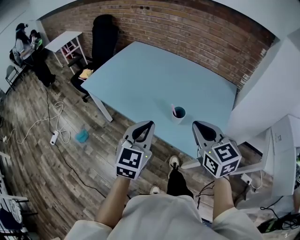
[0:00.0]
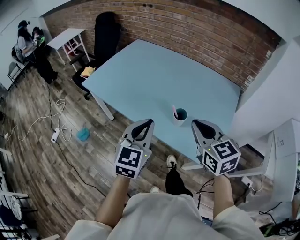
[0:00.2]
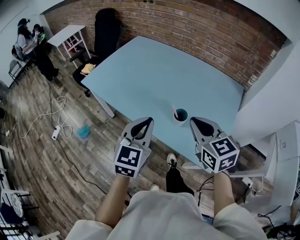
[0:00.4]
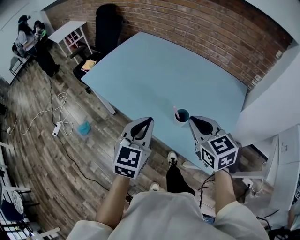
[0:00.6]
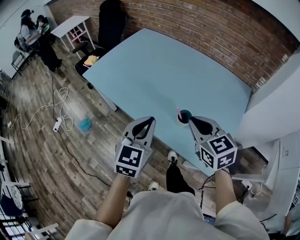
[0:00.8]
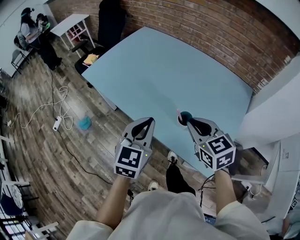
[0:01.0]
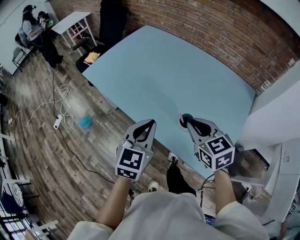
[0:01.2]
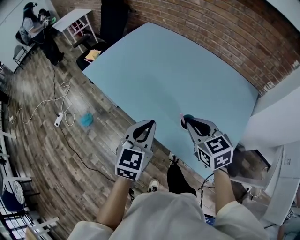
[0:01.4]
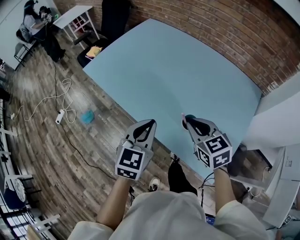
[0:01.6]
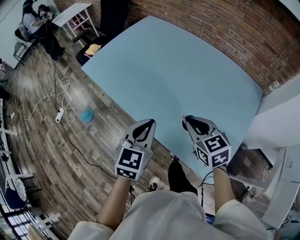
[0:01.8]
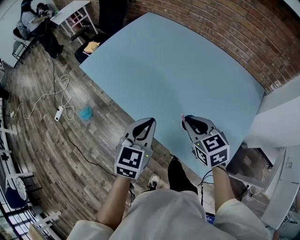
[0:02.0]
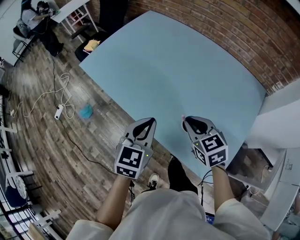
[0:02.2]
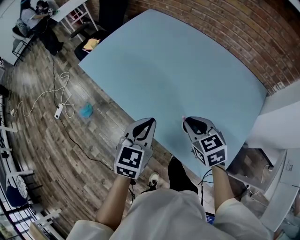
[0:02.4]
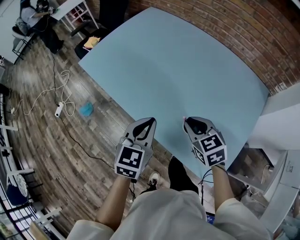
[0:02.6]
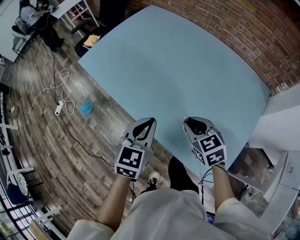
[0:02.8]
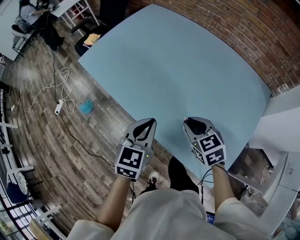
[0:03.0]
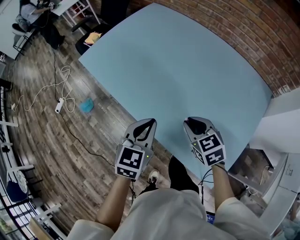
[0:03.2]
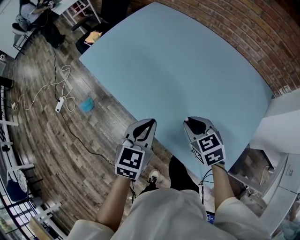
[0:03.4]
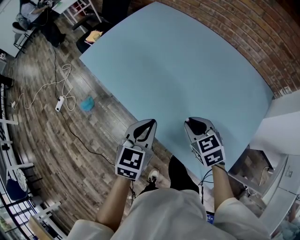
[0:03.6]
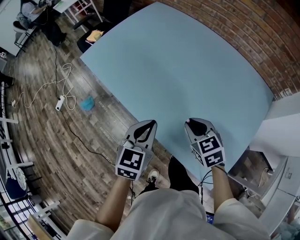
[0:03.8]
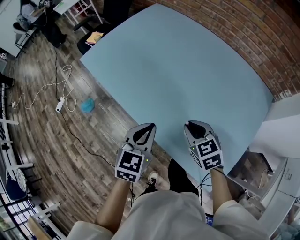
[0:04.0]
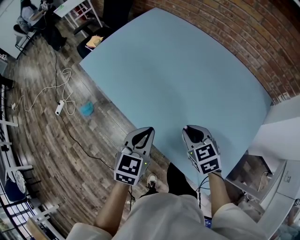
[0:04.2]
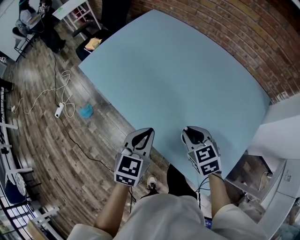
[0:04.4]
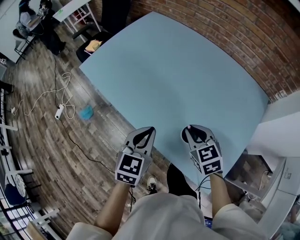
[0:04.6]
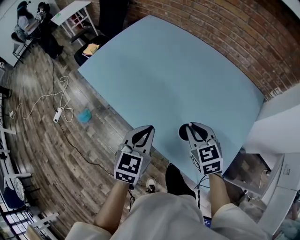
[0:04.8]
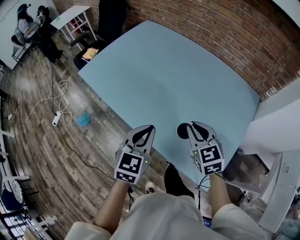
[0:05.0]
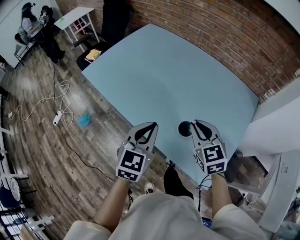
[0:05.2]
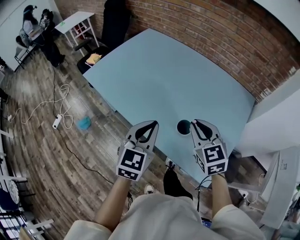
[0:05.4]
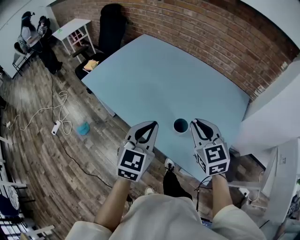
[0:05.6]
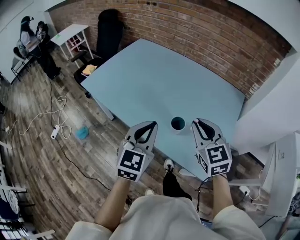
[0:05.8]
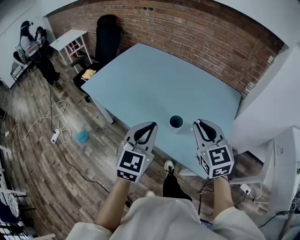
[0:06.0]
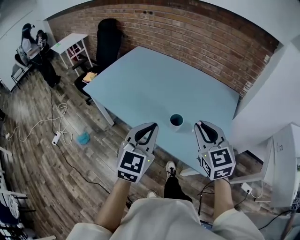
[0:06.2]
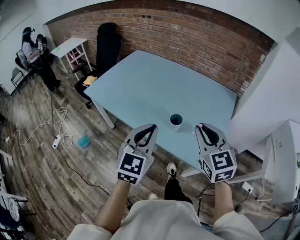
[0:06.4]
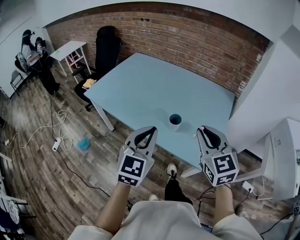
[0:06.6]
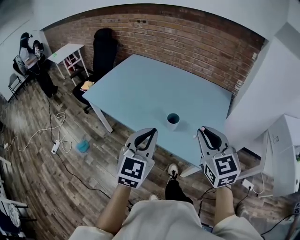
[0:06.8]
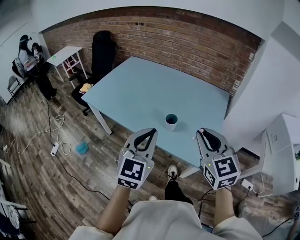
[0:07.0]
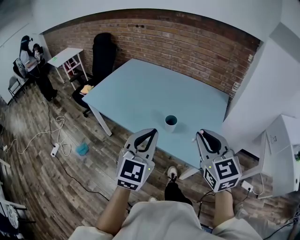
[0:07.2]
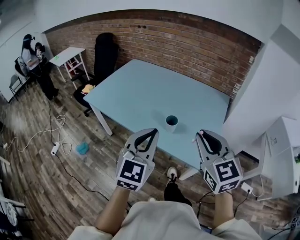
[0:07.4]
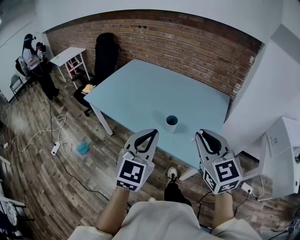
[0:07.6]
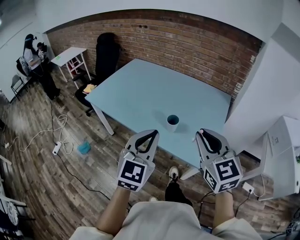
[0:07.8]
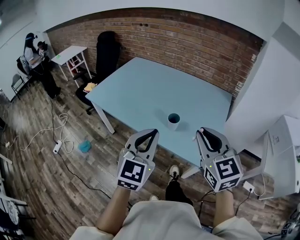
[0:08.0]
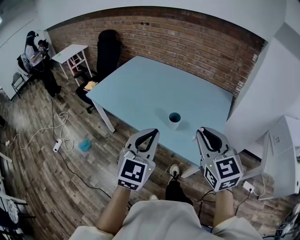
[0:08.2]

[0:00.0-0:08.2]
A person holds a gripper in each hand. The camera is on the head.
0:00.0 to 0:01.6: Both grippers move forward and downward, about 15 cm. The right gripper turns by roughly 20 degrees.
0:01.6 to 0:03.2: The grippers both shift downward by roughly 5 cm.
0:03.2 to 0:05.0: The right gripper heads upward, covering approximately 5 cm. Meanwhile the left gripper shifts by some 5 cm.
0:05.0 to 0:06.6: Both grippers move backward and upward, roughly 25 cm. The right gripper turns by about 20 degrees.
0:06.6 to 0:08.2: The left gripper ends up about 5 cm from where it was. Meanwhile the right gripper moves backward, some 5 cm.

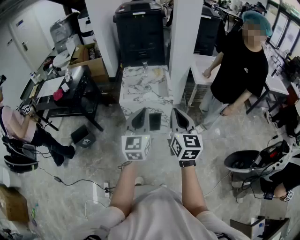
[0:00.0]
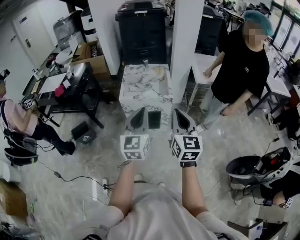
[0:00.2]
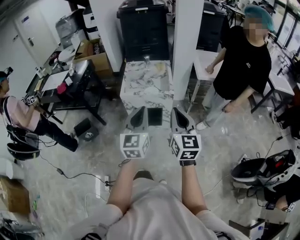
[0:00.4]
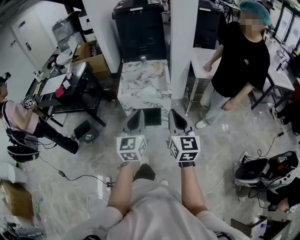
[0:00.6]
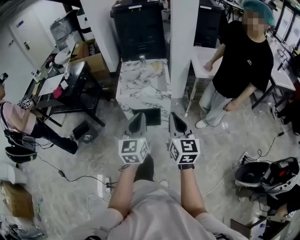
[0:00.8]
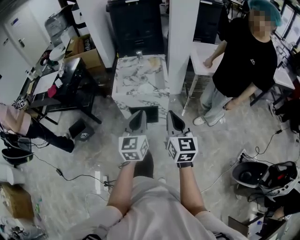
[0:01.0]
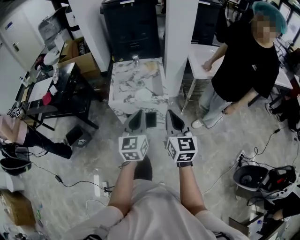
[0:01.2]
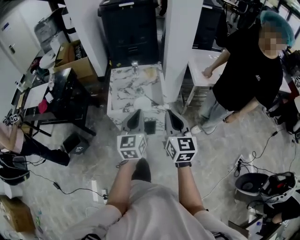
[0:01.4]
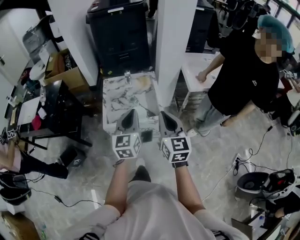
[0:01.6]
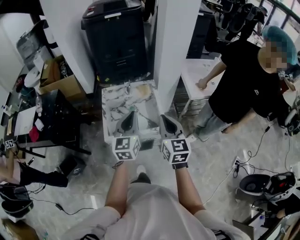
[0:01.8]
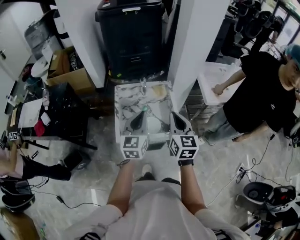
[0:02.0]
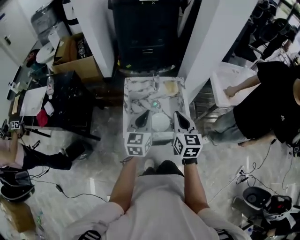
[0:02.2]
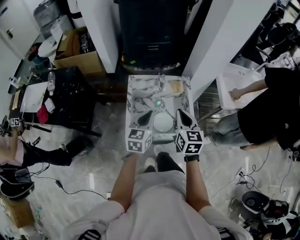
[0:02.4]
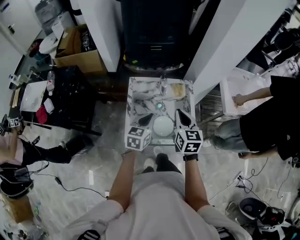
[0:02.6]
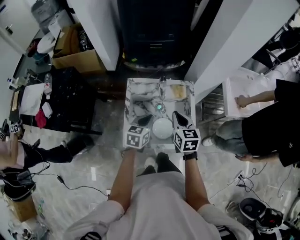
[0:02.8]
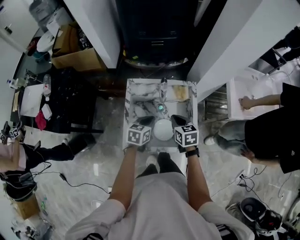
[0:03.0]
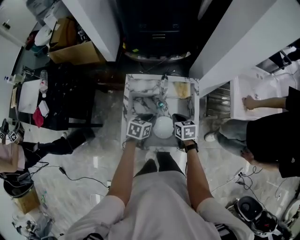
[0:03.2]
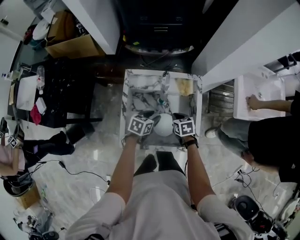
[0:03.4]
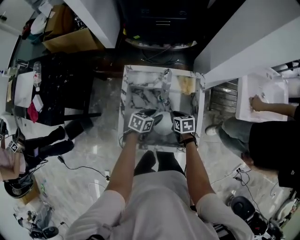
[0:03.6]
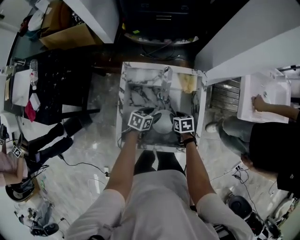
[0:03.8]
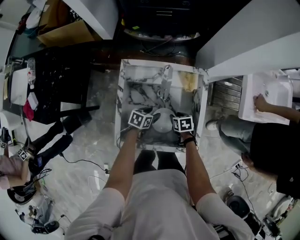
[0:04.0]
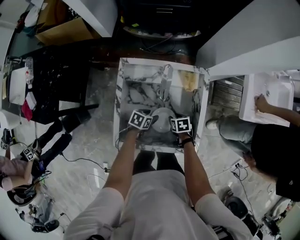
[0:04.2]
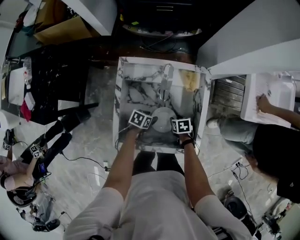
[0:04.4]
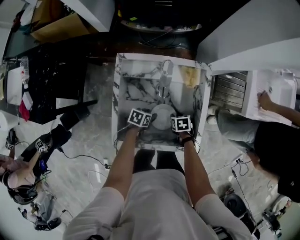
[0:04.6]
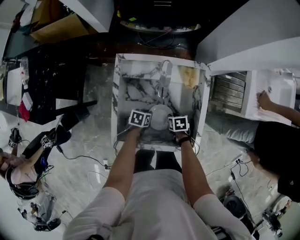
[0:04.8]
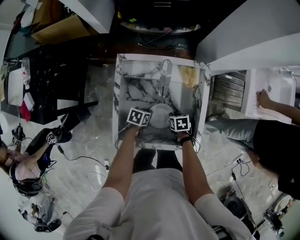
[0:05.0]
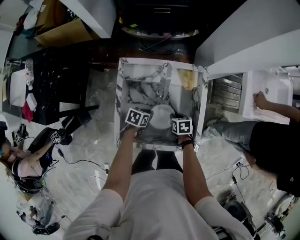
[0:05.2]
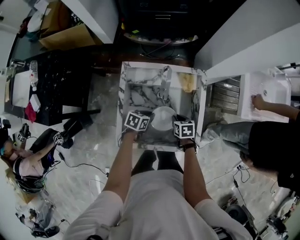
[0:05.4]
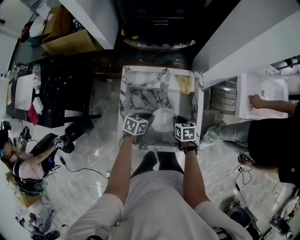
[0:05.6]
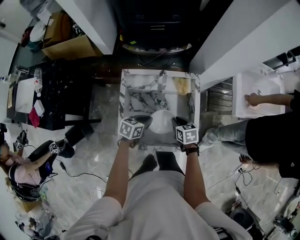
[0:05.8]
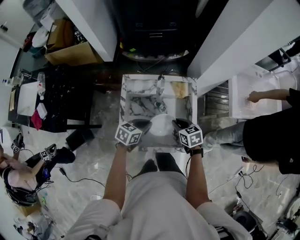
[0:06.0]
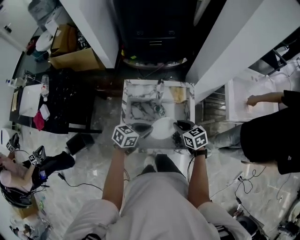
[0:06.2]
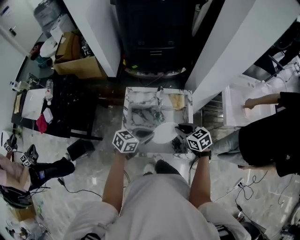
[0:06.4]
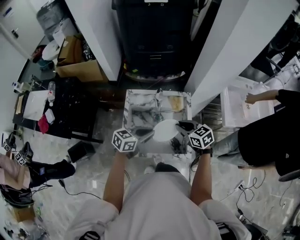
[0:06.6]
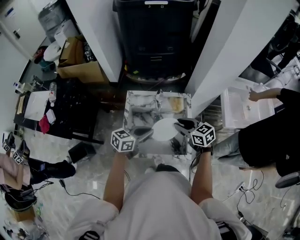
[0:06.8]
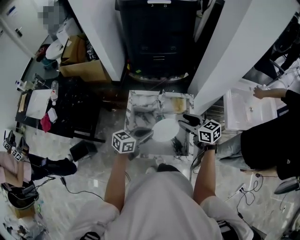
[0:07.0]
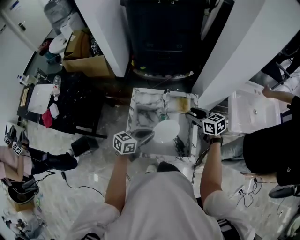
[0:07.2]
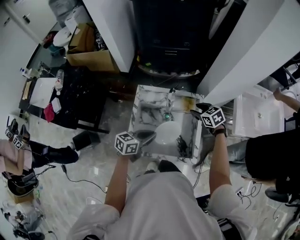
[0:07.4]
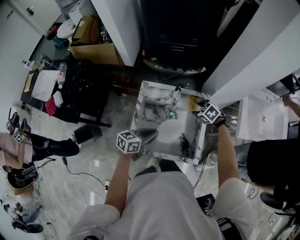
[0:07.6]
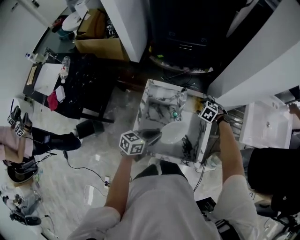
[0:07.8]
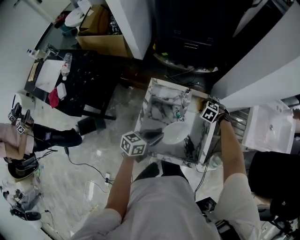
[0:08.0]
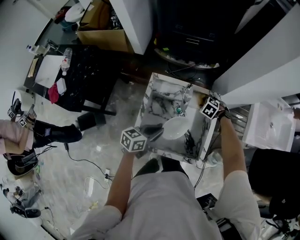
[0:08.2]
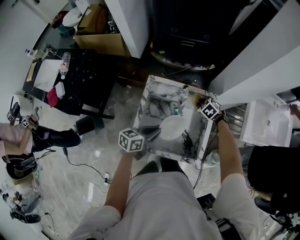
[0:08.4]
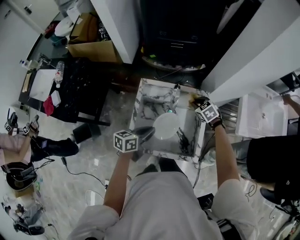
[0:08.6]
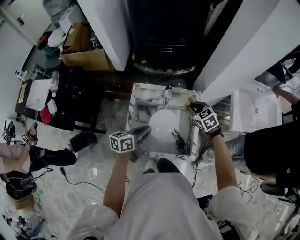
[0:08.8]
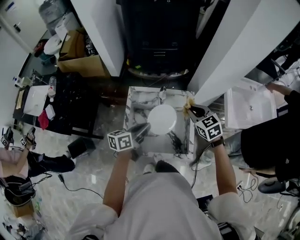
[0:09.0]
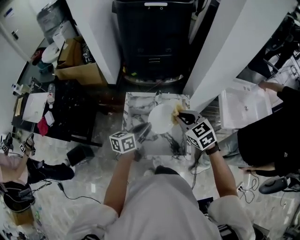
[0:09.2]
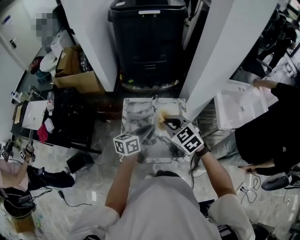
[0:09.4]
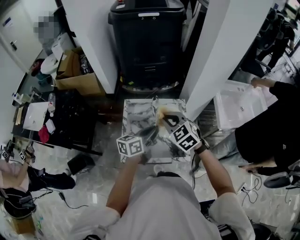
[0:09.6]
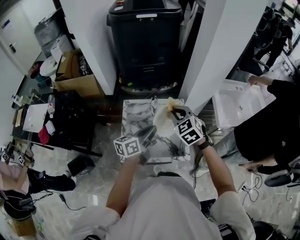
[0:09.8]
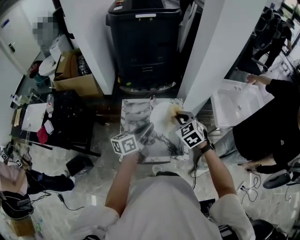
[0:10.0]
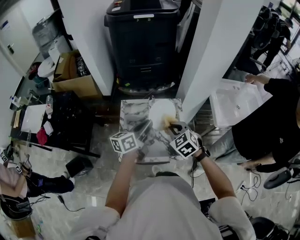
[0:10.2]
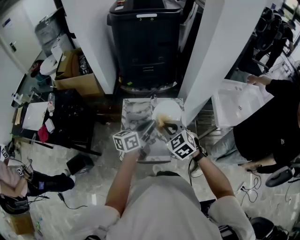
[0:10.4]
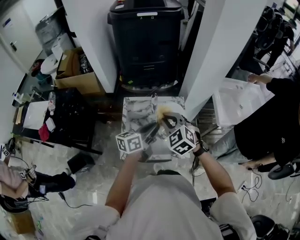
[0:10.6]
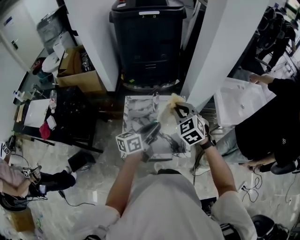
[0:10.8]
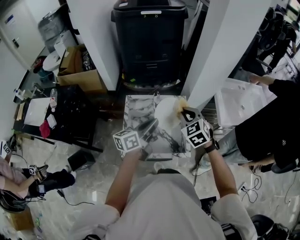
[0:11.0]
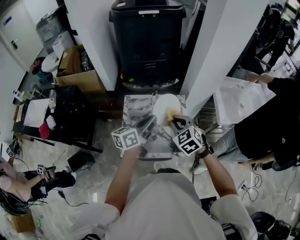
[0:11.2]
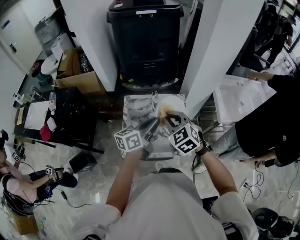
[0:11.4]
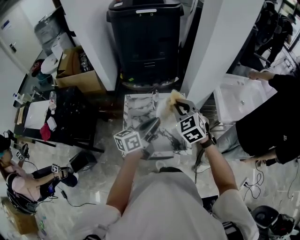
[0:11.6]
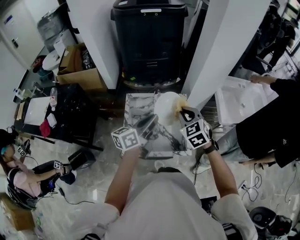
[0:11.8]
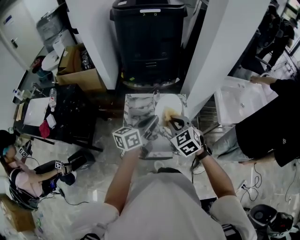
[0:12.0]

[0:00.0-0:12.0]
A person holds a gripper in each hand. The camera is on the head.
0:00.0 to 0:01.6: Both grippers move forward, some 25 cm.
0:01.6 to 0:03.0: The left gripper is displaced downward and forward by about 35 cm, and points its fingers approximately 30 degrees further downward; the right gripper shifts some 40 cm forward and downward, and angles its fingers downward, by approximately 30 degrees.
0:03.0 to 0:04.4: Both grippers move downward, approximately 25 cm. The right gripper tips its fingers downward by approximately 30 degrees, and opens up; the left gripper changes its angle by roughly 30 degrees, and opens.
0:04.4 to 0:06.0: Both grippers travel together upward, some 20 cm. The right gripper turns by about 30 degrees, and closes up; the left gripper changes its angle by some 30 degrees, and closes.
0:06.0 to 0:07.6: The right gripper goes about 15 cm forward, moves some 15 cm upward and comes back, turns by about 50 degrees, and opens, while the left gripper moves upward, some 5 cm.
0:07.6 to 0:09.0: The left gripper shifts approximately 5 cm upward, while the right gripper goes some 15 cm upward, swivels approximately 40 degrees, and closes.
0:09.0 to 0:10.4: The right gripper moves forward and backward over about 10 cm, changing direction 2 times, while the left gripper heads upward and to the right, covering approximately 10 cm.
0:10.4 to 0:12.0: The right gripper swings left and right, some 5 cm each way, with 3 reversals.

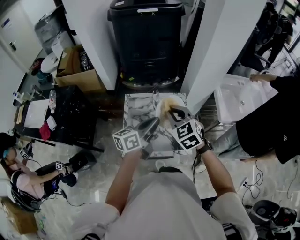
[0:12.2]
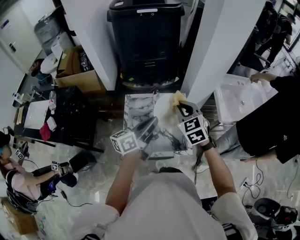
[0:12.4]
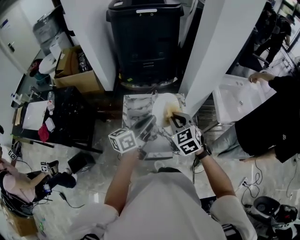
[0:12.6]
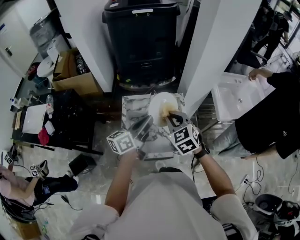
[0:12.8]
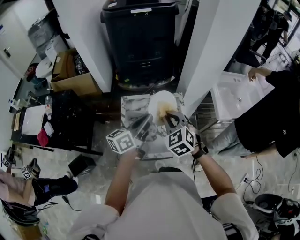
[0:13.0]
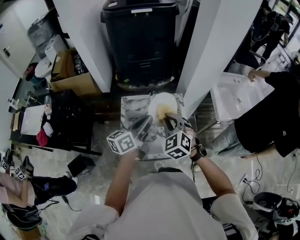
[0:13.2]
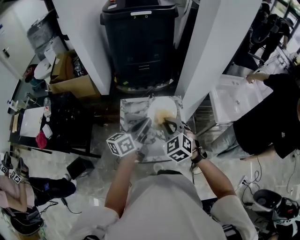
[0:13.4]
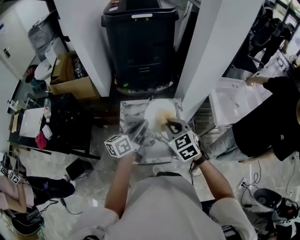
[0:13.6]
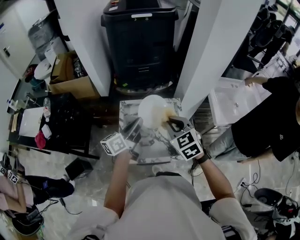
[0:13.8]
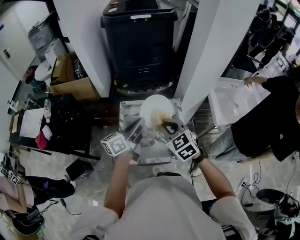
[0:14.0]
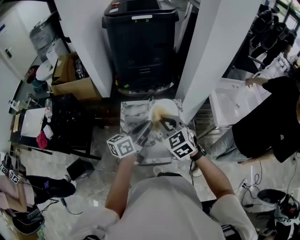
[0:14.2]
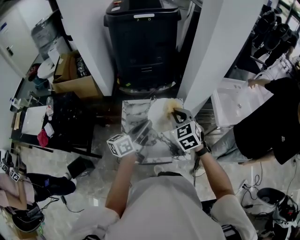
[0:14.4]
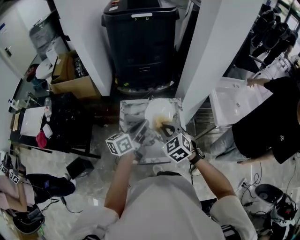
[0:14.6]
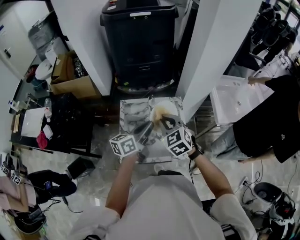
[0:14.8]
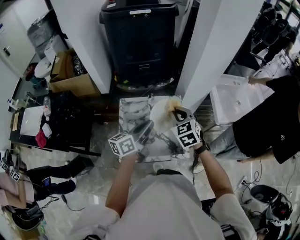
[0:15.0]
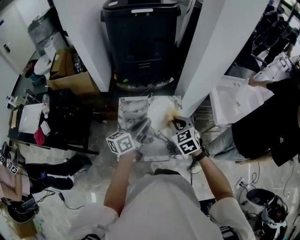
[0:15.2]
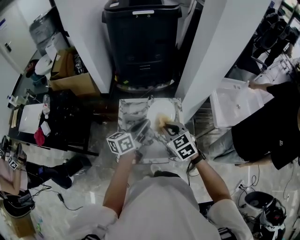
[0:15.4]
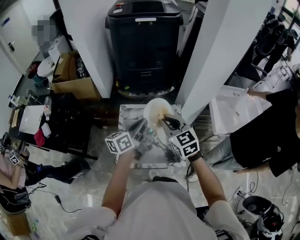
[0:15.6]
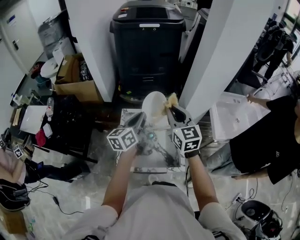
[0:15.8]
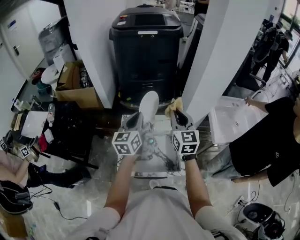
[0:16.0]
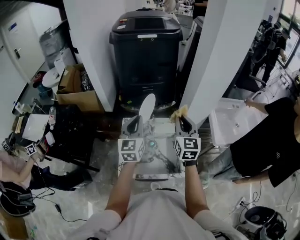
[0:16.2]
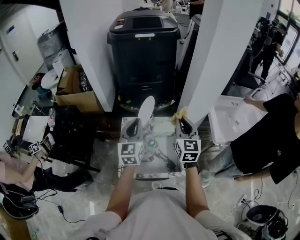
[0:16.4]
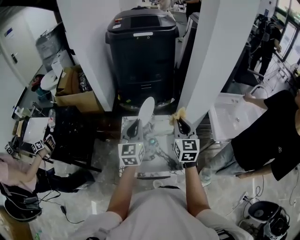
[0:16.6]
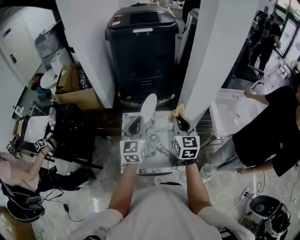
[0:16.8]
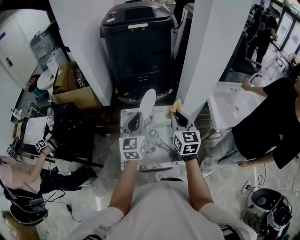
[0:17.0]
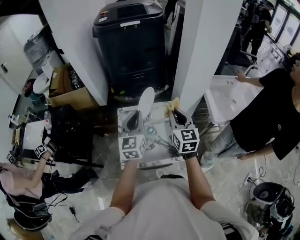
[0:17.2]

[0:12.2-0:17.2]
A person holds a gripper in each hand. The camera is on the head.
0:12.2 to 0:13.8: The left gripper moves to the left, roughly 5 cm.
0:13.8 to 0:15.6: The right gripper goes downward and returns, some 5 cm each way.
0:15.6 to 0:17.2: The left gripper heads upward, covering approximately 5 cm, and rotates around the line of its fingers by roughly 40 degrees, clockwise from behind. The right gripper moves to the right, some 5 cm, and turns by approximately 30 degrees.
